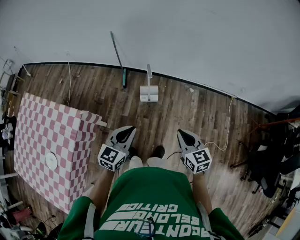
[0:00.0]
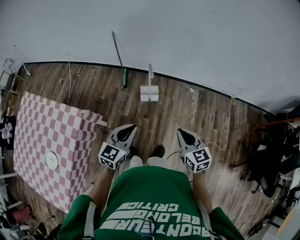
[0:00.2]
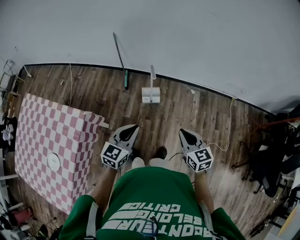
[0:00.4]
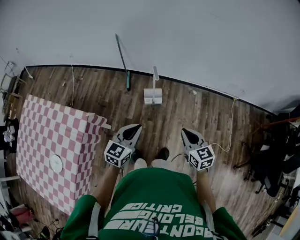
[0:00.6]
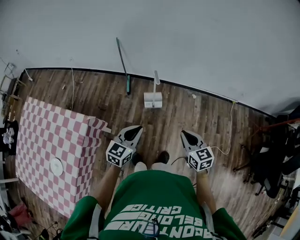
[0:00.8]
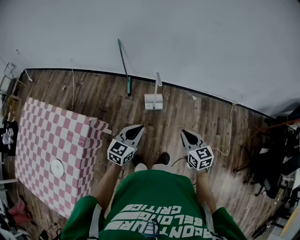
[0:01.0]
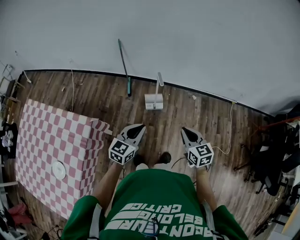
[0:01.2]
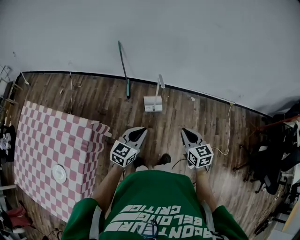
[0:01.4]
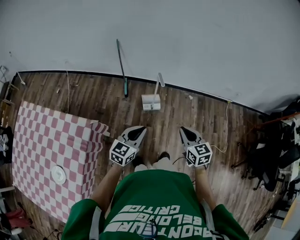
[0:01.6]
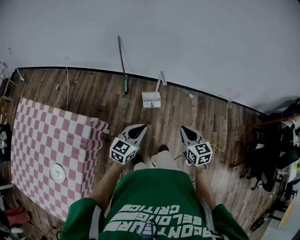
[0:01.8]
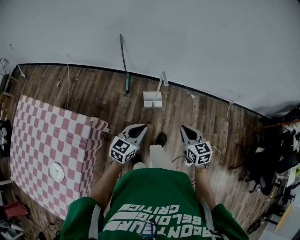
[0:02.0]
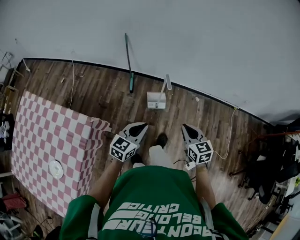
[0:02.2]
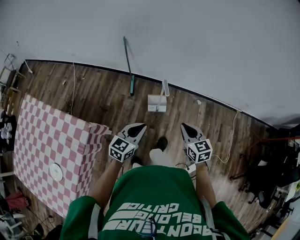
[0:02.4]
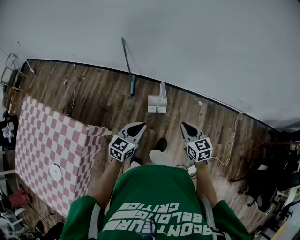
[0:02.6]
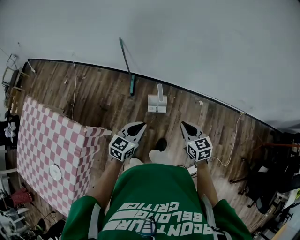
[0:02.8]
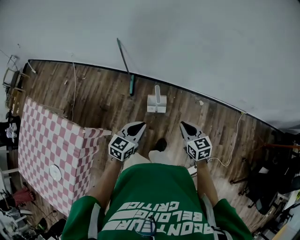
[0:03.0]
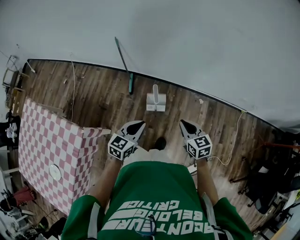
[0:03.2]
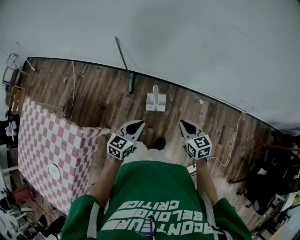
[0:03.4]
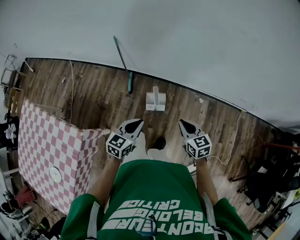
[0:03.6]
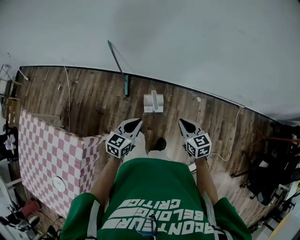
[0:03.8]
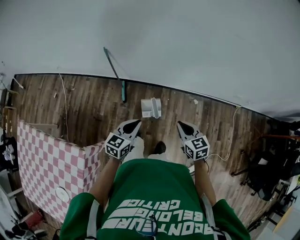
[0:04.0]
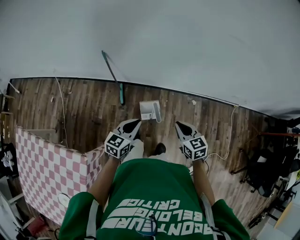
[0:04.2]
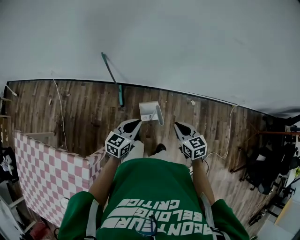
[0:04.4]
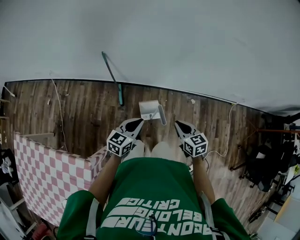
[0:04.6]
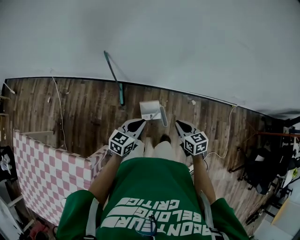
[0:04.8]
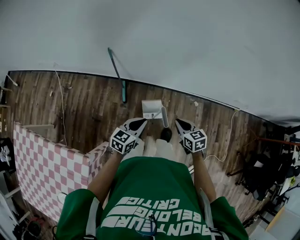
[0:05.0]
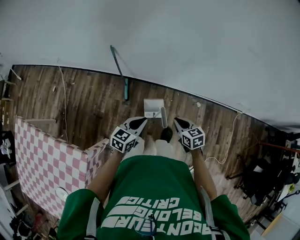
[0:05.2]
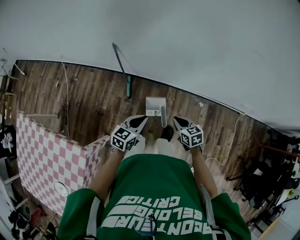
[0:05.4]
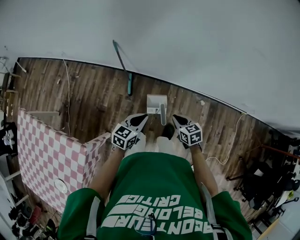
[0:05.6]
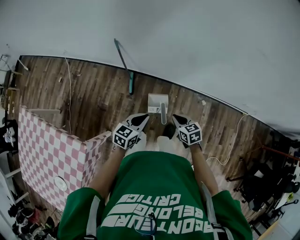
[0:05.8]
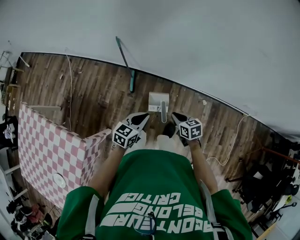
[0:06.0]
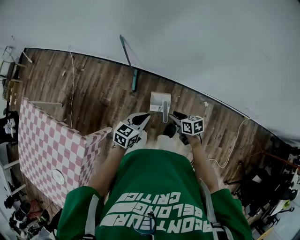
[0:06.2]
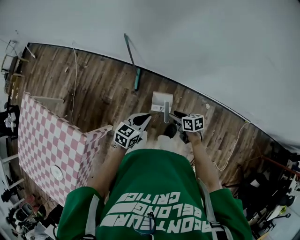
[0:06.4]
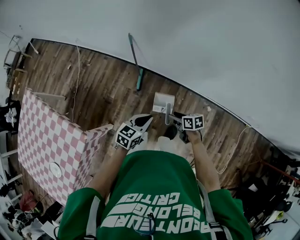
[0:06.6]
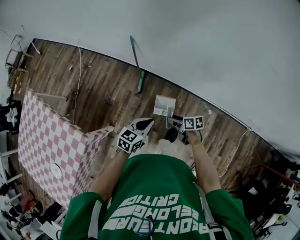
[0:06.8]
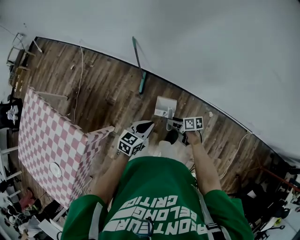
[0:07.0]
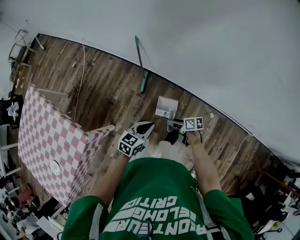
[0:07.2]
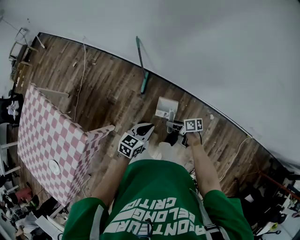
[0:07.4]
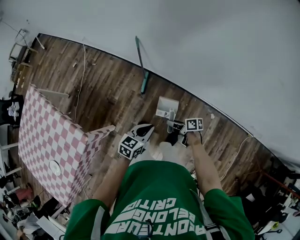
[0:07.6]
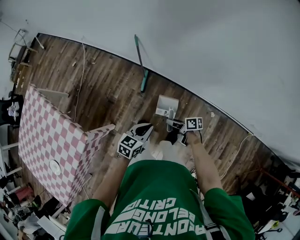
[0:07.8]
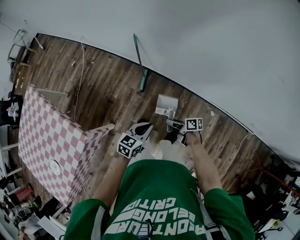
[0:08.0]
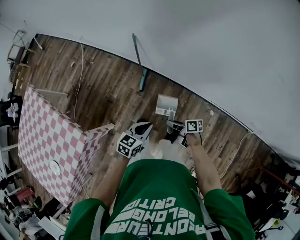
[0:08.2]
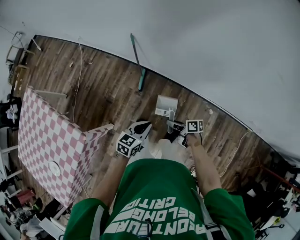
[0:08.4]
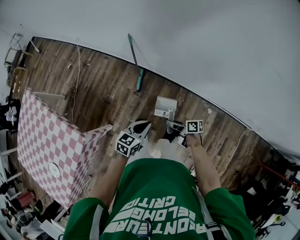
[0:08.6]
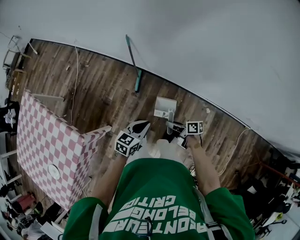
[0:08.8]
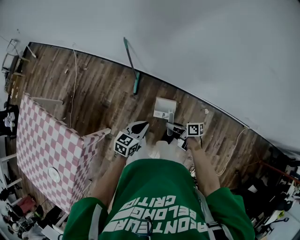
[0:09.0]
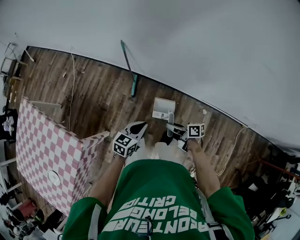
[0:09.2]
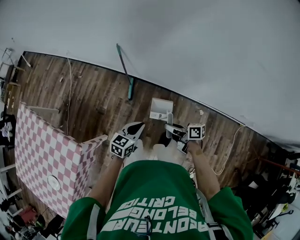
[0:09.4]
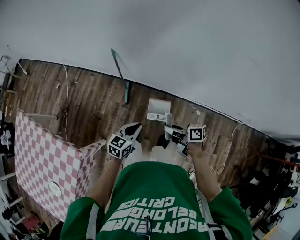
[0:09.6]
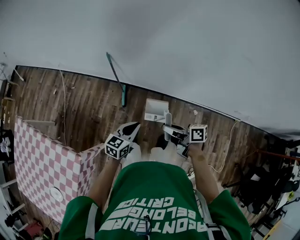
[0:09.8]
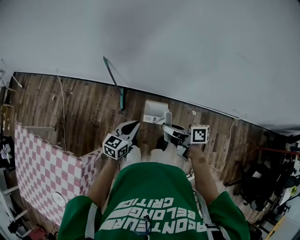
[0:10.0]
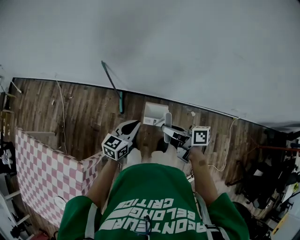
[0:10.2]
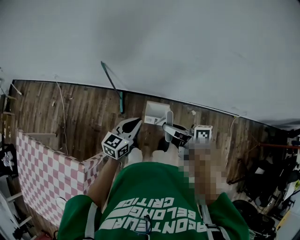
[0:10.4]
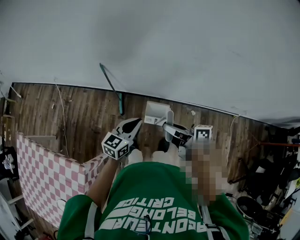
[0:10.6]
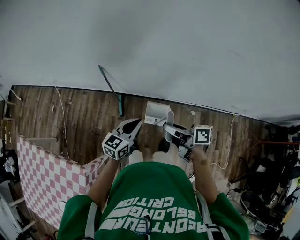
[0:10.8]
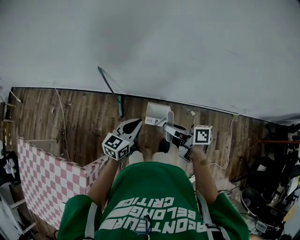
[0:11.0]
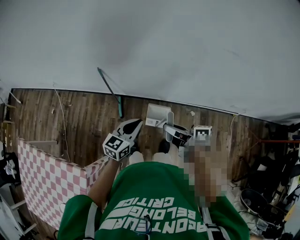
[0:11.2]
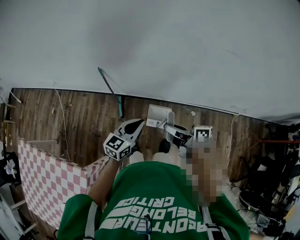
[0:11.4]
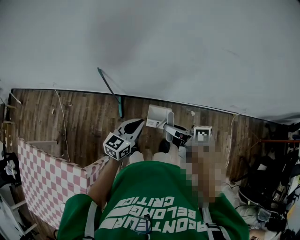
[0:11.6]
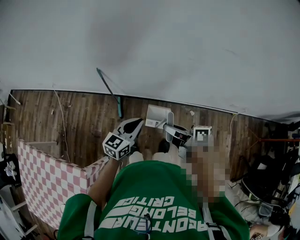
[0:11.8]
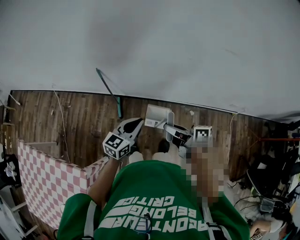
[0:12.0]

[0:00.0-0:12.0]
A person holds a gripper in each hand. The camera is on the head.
0:00.0 to 0:01.6: Both grippers move to the left, roughly 10 cm.
0:01.6 to 0:03.0: Both grippers travel together forward, approximately 20 cm.
0:03.0 to 0:04.4: The grippers both shift forward and to the left by roughly 15 cm.
0:04.4 to 0:06.0: The left gripper ends up about 5 cm from where it was. The right gripper heads downward and forward, covering roughly 15 cm, and changes its angle by some 20 degrees.
0:06.0 to 0:07.6: The right gripper moves downward and to the left, roughly 10 cm, swivels approximately 50 degrees, and opens its fingers.
0:07.6 to 0:09.0: The right gripper ends up roughly 5 cm from where it was.
0:09.0 to 0:10.4: The left gripper moves upward and forward, approximately 15 cm. Meanwhile the right gripper moves upward, roughly 25 cm, and turns by approximately 20 degrees.
0:10.4 to 0:12.0: The grippers make only small movements.

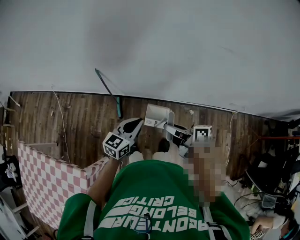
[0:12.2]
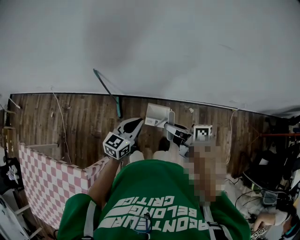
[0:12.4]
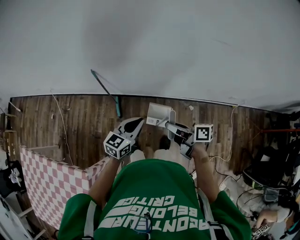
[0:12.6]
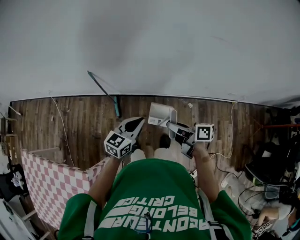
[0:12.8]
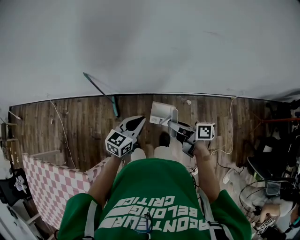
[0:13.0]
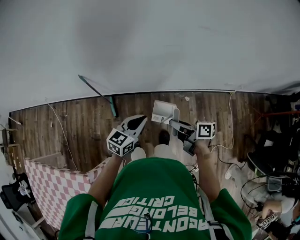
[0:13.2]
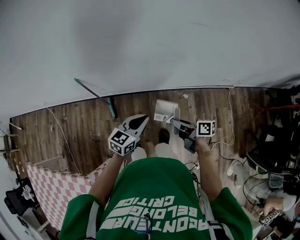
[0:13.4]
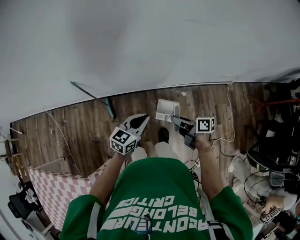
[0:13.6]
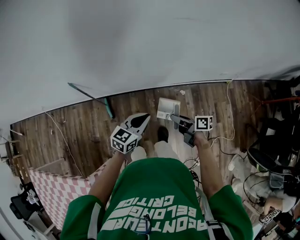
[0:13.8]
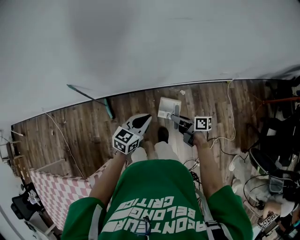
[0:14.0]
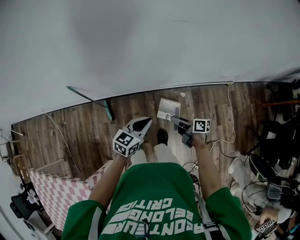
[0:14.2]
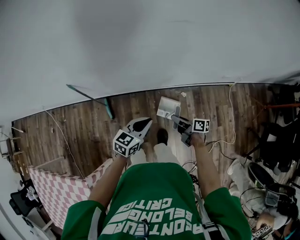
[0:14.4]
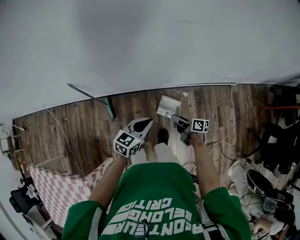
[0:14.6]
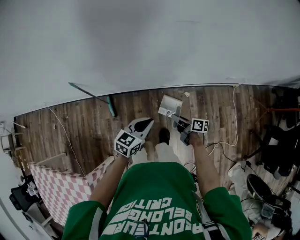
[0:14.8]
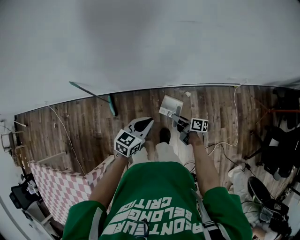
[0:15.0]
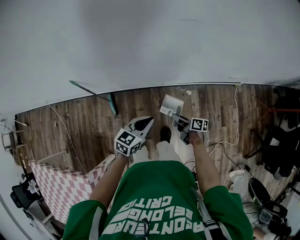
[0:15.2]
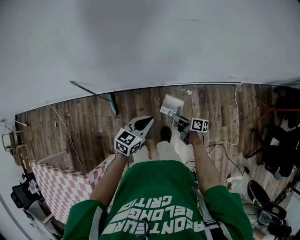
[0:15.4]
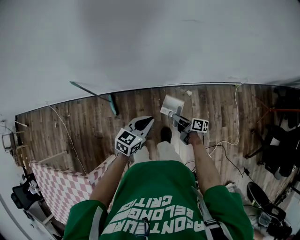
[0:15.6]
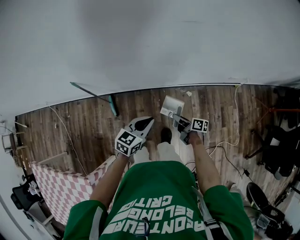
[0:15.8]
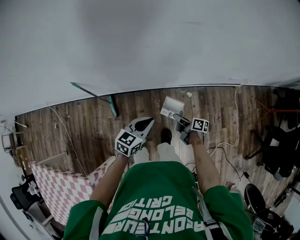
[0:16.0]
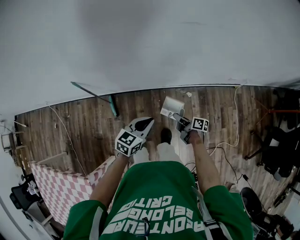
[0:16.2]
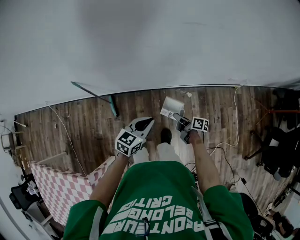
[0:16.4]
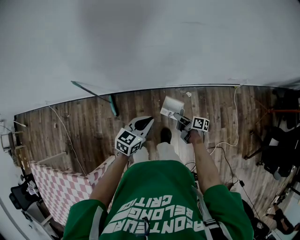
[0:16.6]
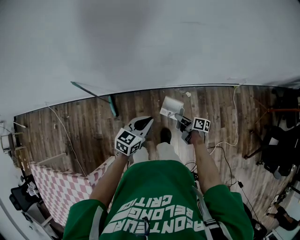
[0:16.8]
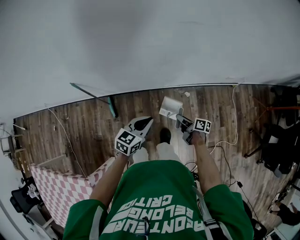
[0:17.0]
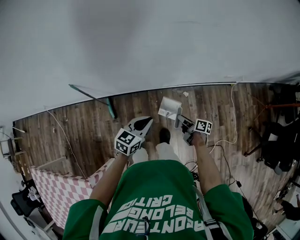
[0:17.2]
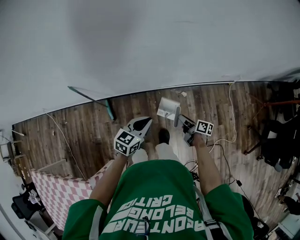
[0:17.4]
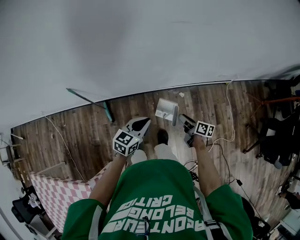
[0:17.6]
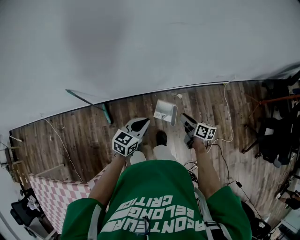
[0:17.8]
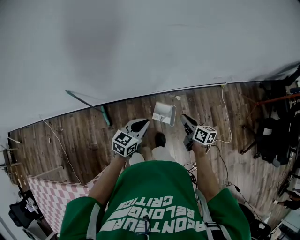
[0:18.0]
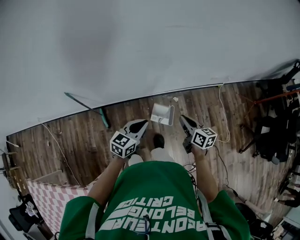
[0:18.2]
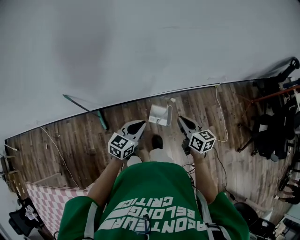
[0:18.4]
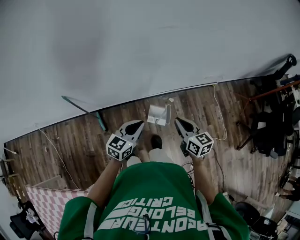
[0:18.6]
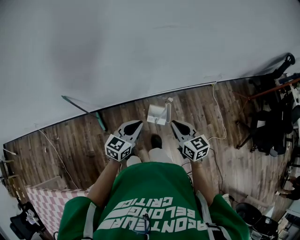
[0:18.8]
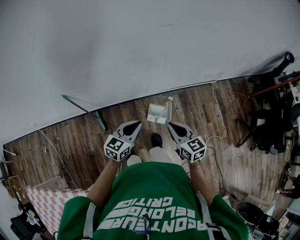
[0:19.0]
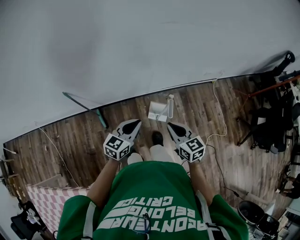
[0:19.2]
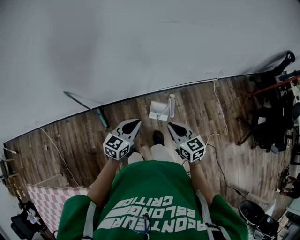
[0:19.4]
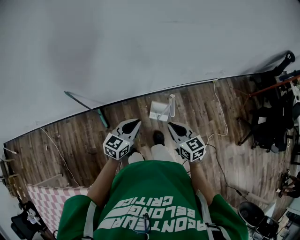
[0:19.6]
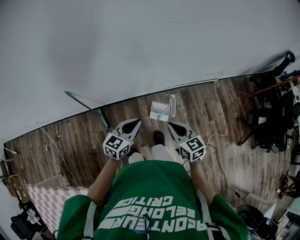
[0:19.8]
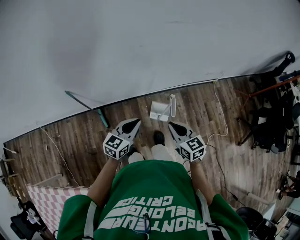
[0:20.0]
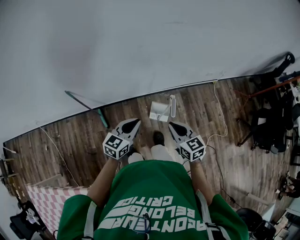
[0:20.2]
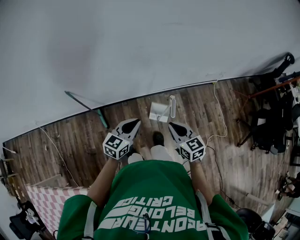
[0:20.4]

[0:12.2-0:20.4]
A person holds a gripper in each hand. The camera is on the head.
0:12.2 to 0:13.8: The right gripper goes roughly 25 cm to the right and downward. Meanwhile the left gripper shifts approximately 20 cm to the right.
0:13.8 to 0:15.4: The right gripper is displaced downward by about 15 cm.
0:15.4 to 0:17.2: The grippers move only a little.
0:17.2 to 0:18.8: The left gripper is displaced upward and backward by some 10 cm. Meanwhile the right gripper moves upward, roughly 25 cm, rotates around the line of its fingers by approximately 50 degrees, counterclockwise from behind, and closes its fingers.
0:18.8 to 0:20.4: The right gripper ends up some 5 cm from where it was; the left gripper ends up approximately 5 cm from where it was.

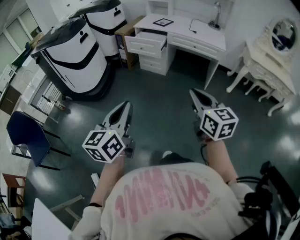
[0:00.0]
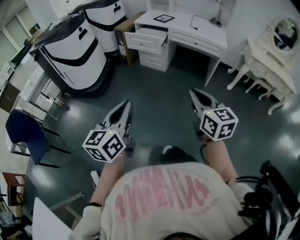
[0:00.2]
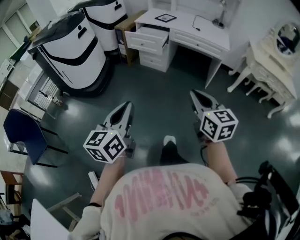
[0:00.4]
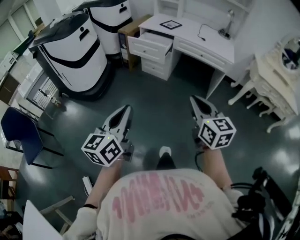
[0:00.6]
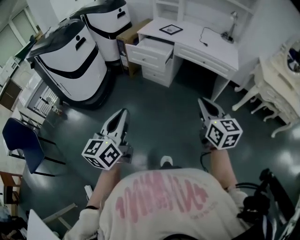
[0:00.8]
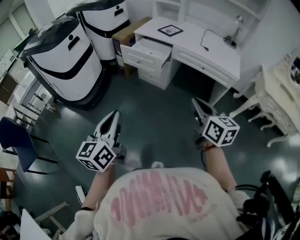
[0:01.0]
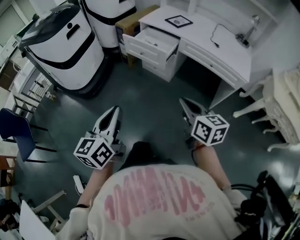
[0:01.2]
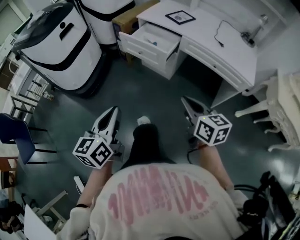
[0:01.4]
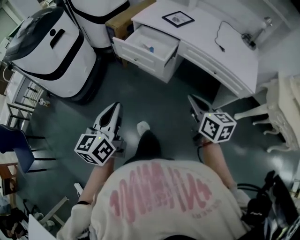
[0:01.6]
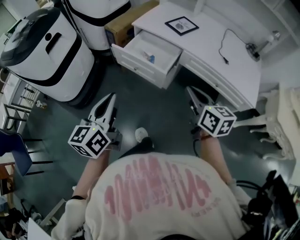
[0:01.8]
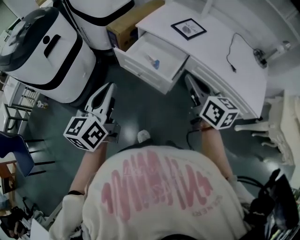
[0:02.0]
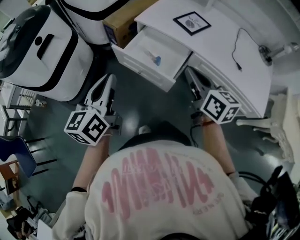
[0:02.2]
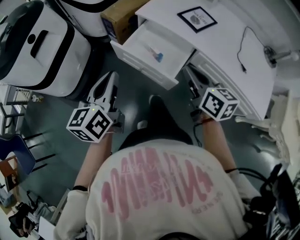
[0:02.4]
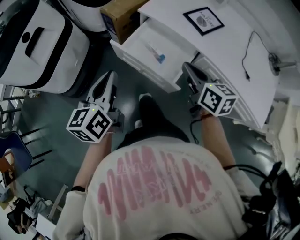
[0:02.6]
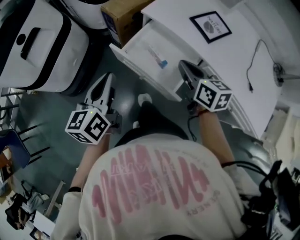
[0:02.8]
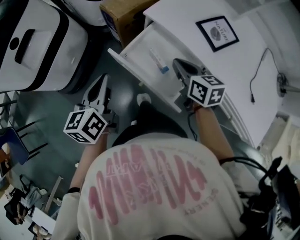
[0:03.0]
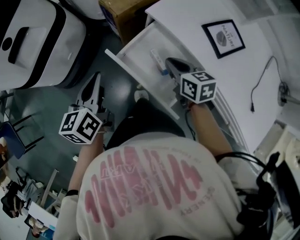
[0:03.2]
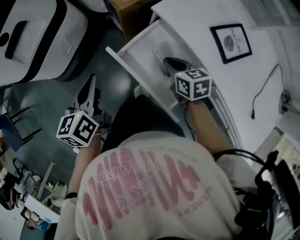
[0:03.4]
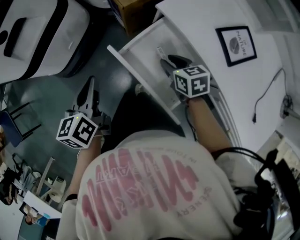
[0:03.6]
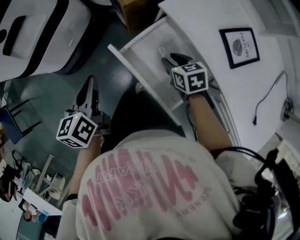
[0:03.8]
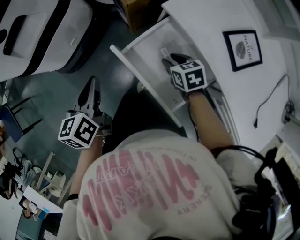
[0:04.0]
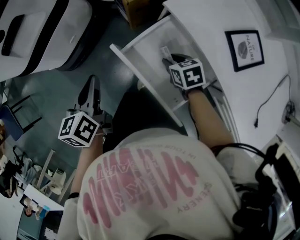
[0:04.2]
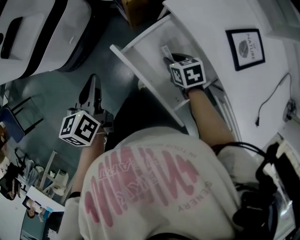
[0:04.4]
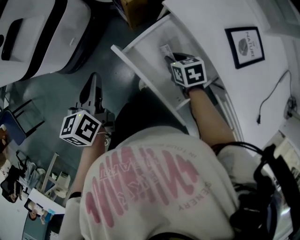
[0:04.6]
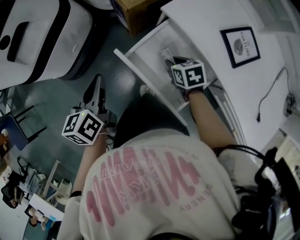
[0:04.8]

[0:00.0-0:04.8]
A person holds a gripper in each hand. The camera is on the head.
0:00.0 to 0:01.6: Both grippers are carried forward, some 50 cm.
0:01.6 to 0:03.2: The two grippers travel together, forward, roughly 50 cm. The left gripper changes its angle by approximately 20 degrees. The right gripper changes its angle by roughly 30 degrees.
0:03.2 to 0:04.8: The right gripper is displaced downward by about 10 cm, and swivels about 20 degrees, while the left gripper shifts by about 5 cm.
